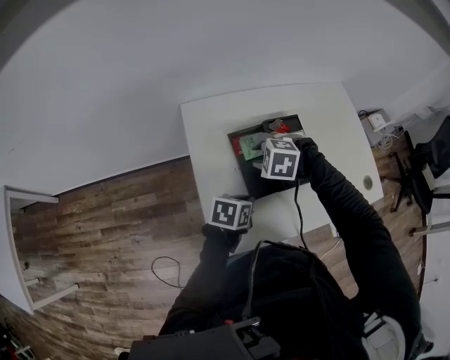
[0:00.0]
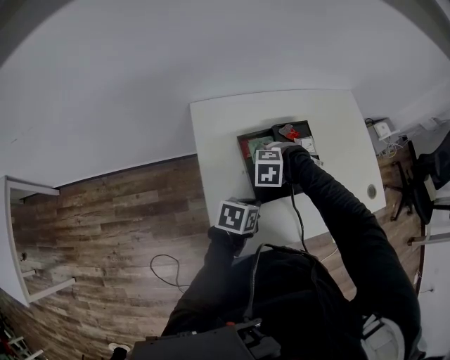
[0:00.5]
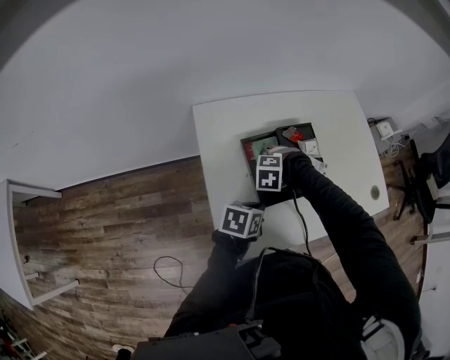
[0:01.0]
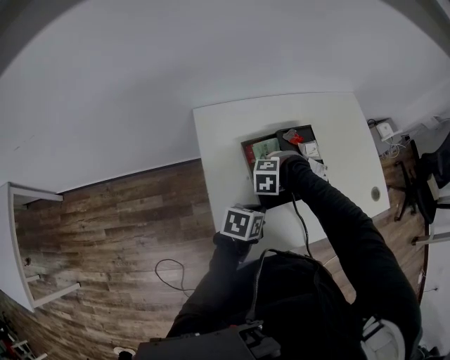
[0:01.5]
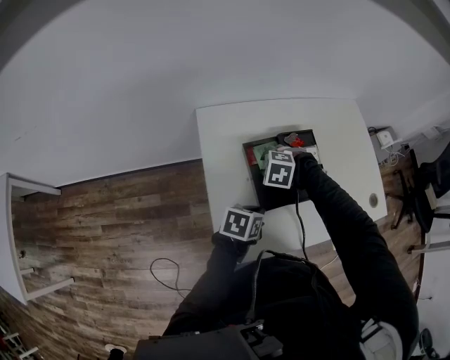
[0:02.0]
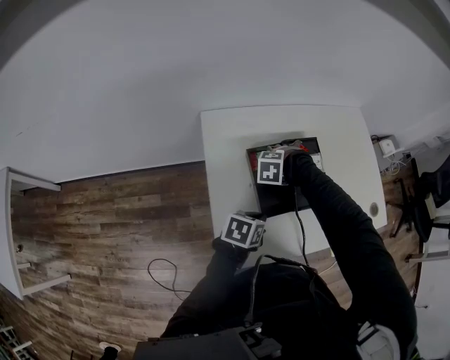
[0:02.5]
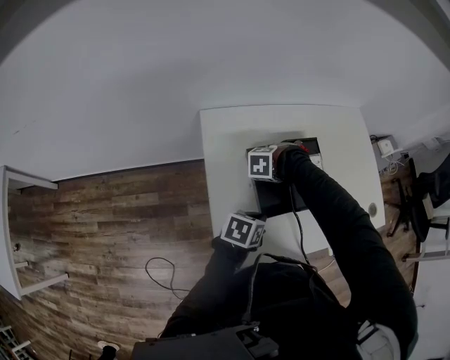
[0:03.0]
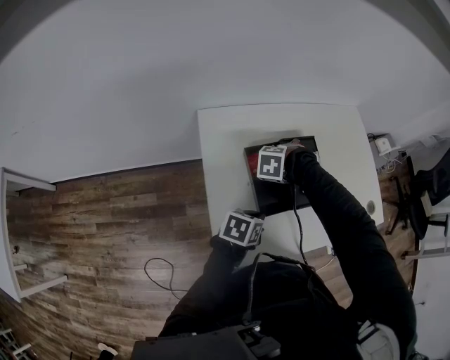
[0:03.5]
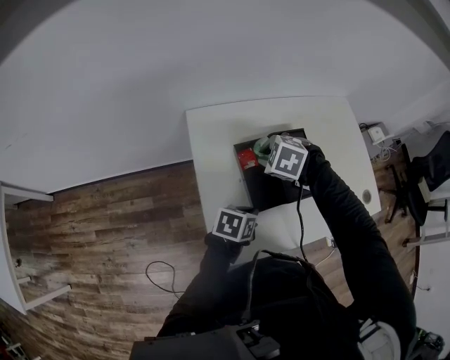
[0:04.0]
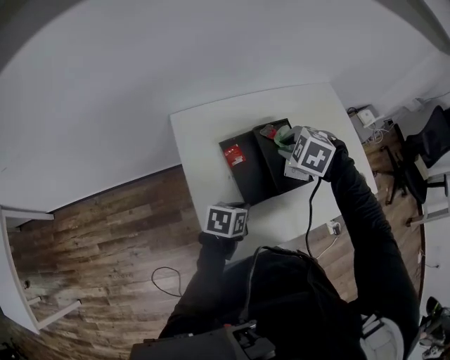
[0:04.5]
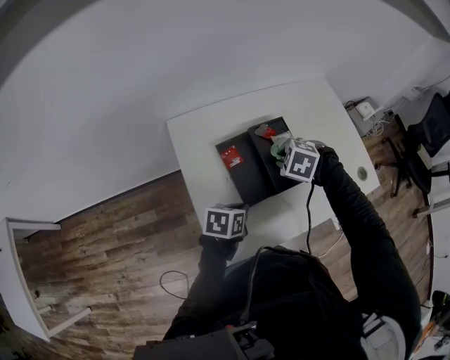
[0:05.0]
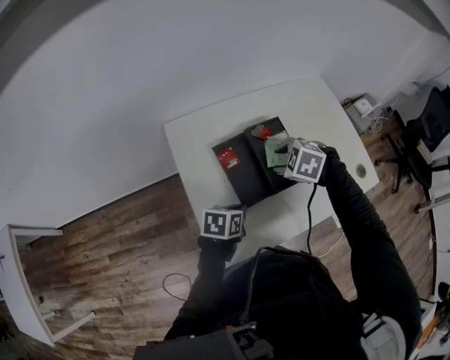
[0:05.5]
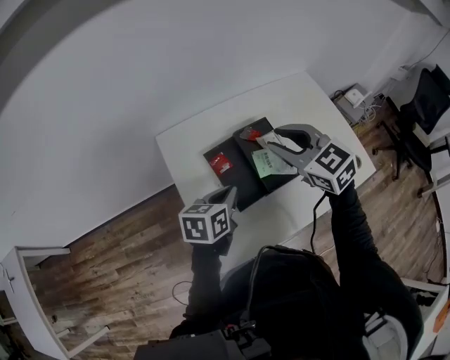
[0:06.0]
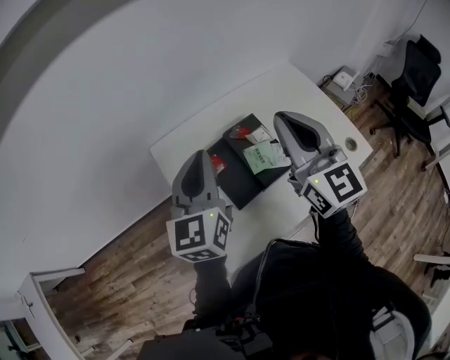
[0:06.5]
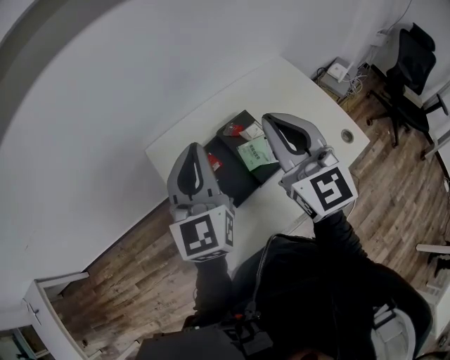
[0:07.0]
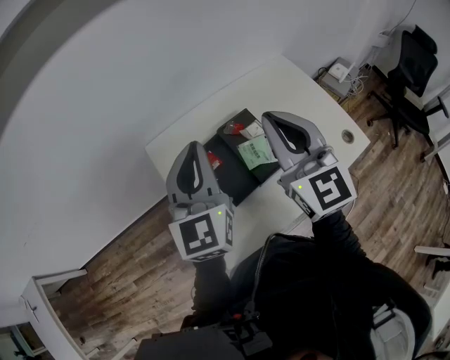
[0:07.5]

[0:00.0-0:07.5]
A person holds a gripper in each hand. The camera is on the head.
0:00.0 to 0:02.0: The right gripper shifts some 5 cm downward, and closes, then opens again.
0:02.0 to 0:04.0: The right gripper goes about 5 cm upward, and opens and closes again.
0:04.0 to 0:05.5: The right gripper shifts by some 10 cm, and opens up.
0:05.5 to 0:07.5: Both grippers travel together upward, roughly 30 cm. The right gripper angles its fingers upward, by some 70 degrees, and closes its fingers. Meanwhile the left gripper tilts its fingers some 50 degrees upward.

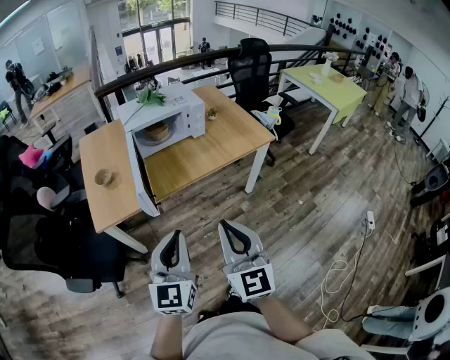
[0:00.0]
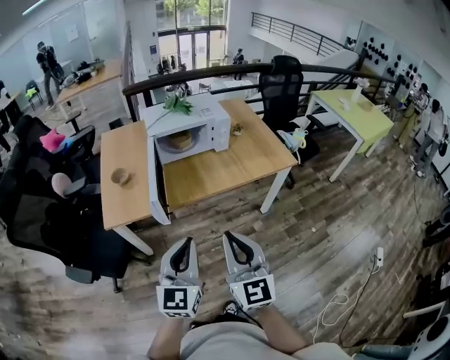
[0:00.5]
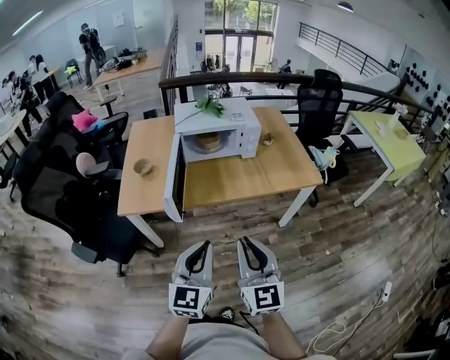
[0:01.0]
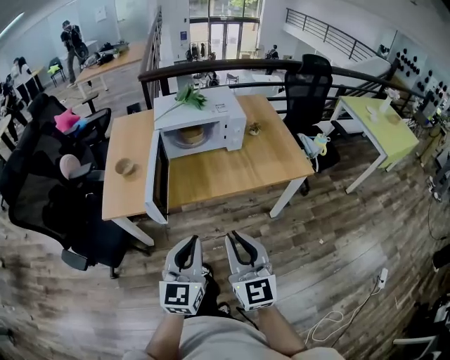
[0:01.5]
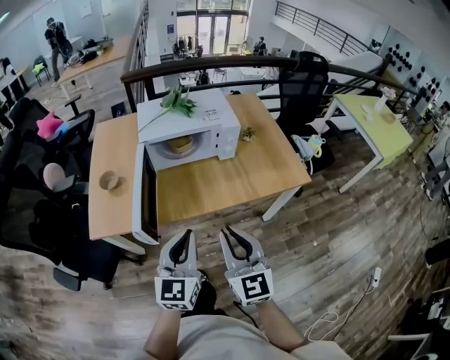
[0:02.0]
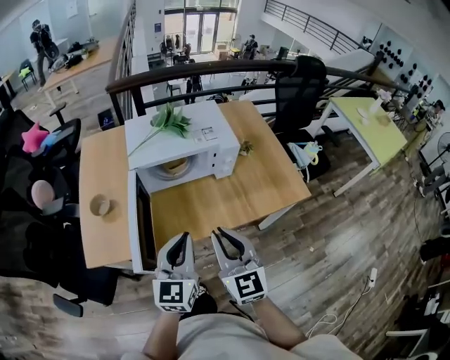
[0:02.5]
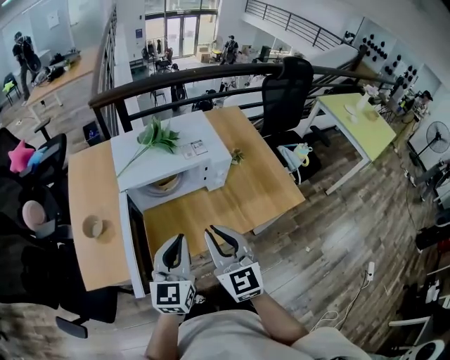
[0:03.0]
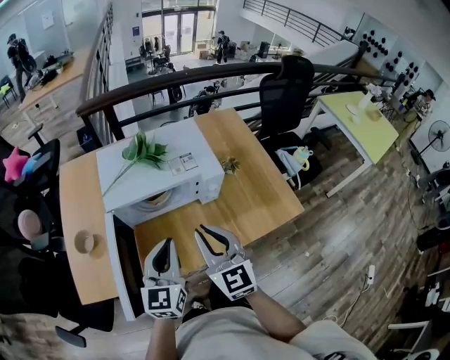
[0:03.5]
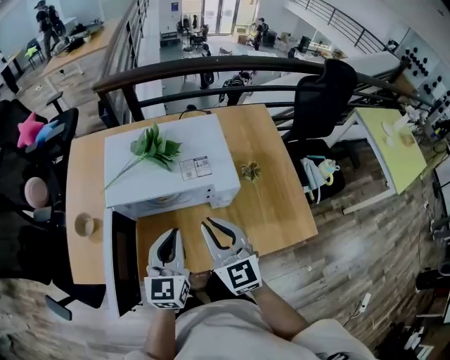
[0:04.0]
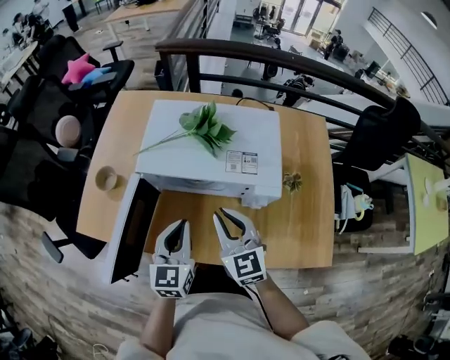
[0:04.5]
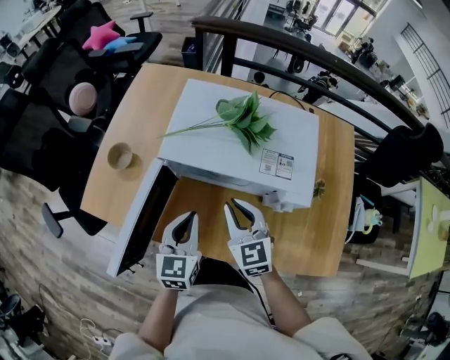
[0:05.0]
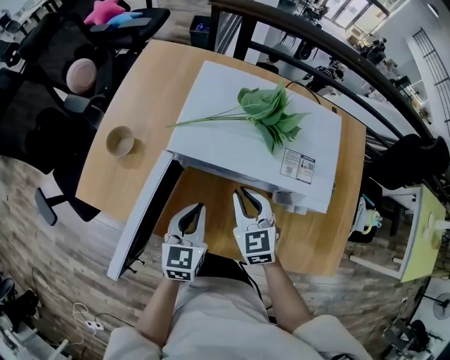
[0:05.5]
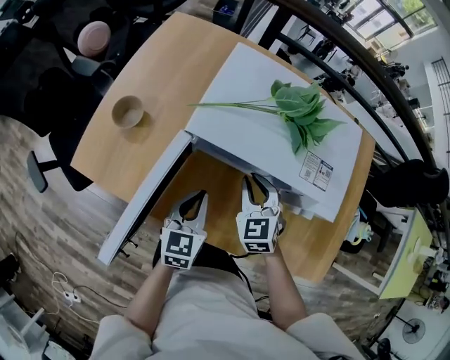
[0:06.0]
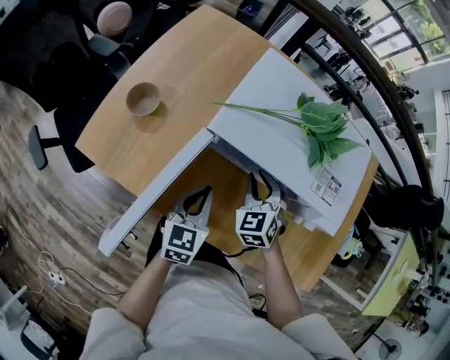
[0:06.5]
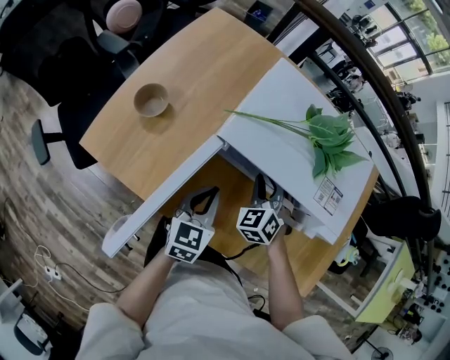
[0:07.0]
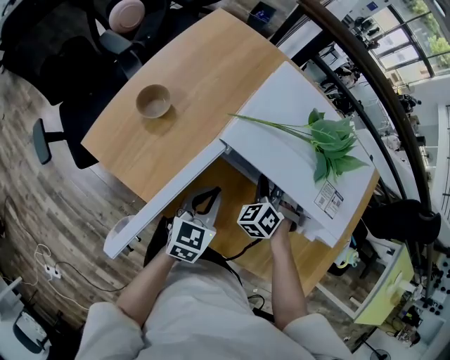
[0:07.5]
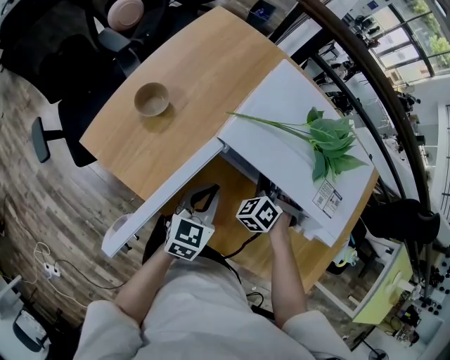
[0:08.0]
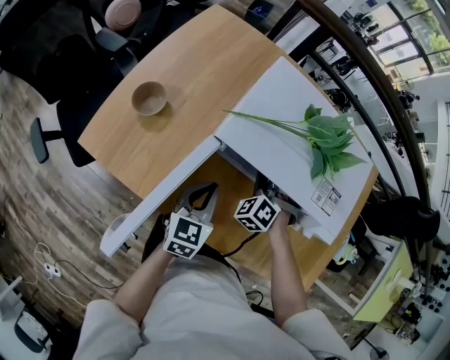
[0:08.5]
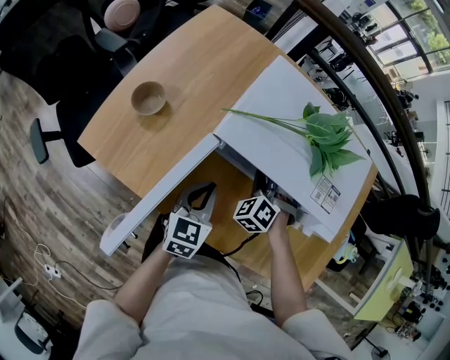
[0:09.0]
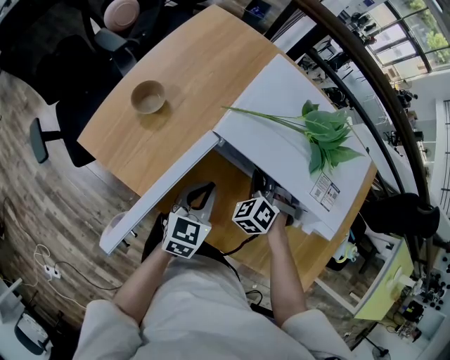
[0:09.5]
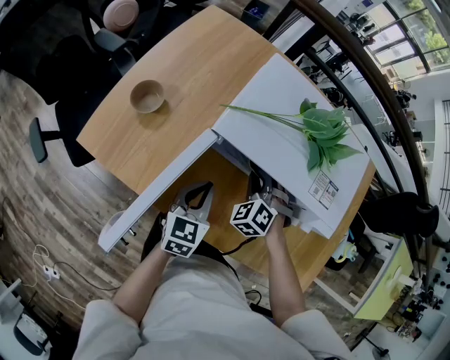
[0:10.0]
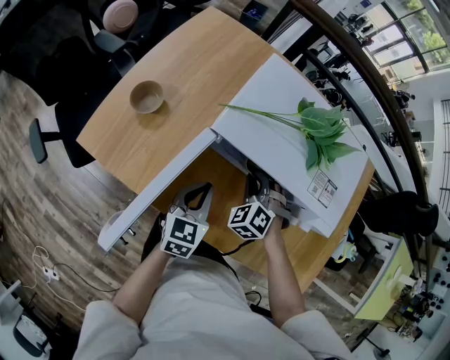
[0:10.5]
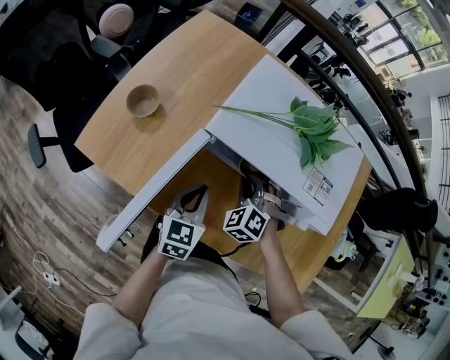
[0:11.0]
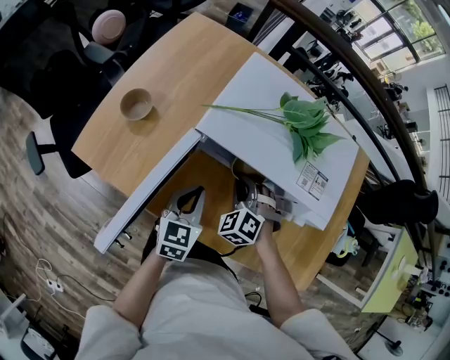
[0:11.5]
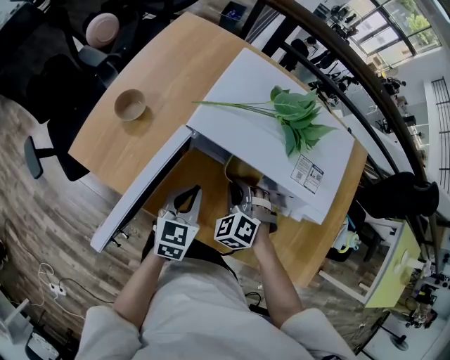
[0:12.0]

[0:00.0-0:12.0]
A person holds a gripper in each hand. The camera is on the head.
0:00.0 to 0:02.0: The grippers both shift forward by about 20 cm.
0:02.0 to 0:04.0: The two grippers go about 35 cm forward.
0:04.0 to 0:06.0: The right gripper travels downward, forward and to the left by some 25 cm, and rotates about 30 degrees, while the left gripper shifts about 20 cm downward and to the left, and turns by approximately 30 degrees.
0:06.0 to 0:08.0: The right gripper shifts approximately 10 cm downward and forward, and swivels about 40 degrees.
0:08.0 to 0:10.0: There are only small adjustments of the grippers.
0:10.0 to 0:12.0: The right gripper shifts approximately 5 cm backward.

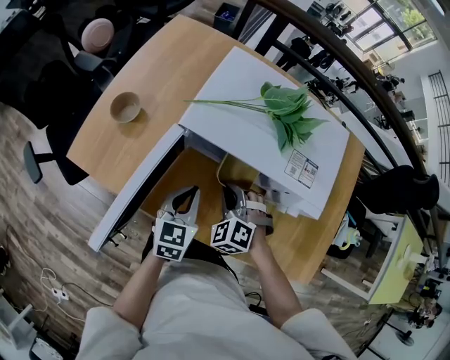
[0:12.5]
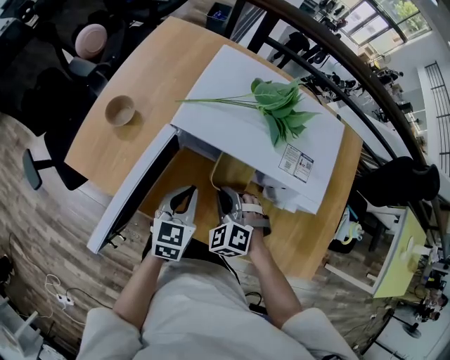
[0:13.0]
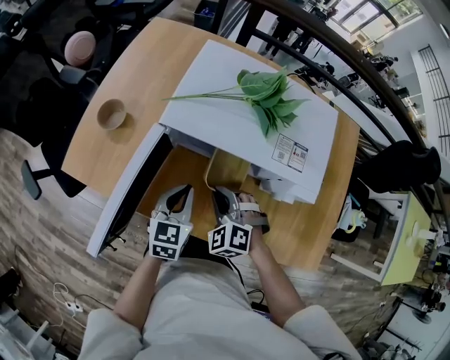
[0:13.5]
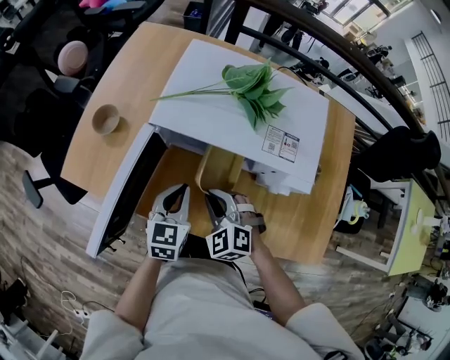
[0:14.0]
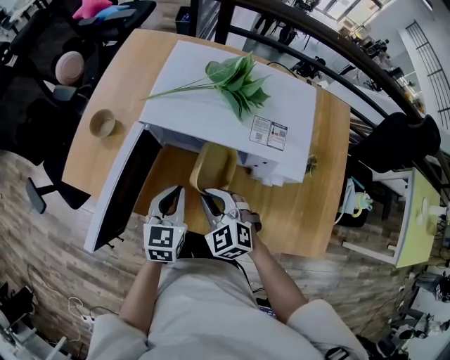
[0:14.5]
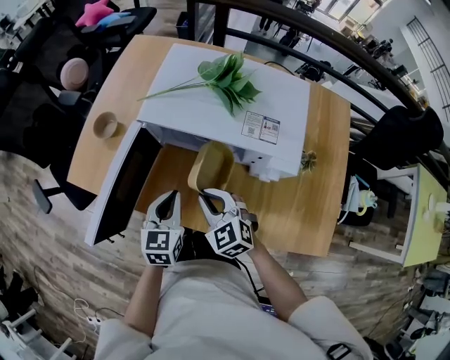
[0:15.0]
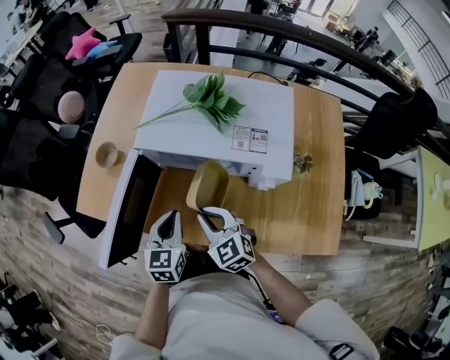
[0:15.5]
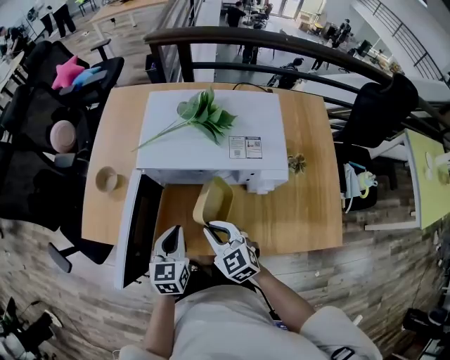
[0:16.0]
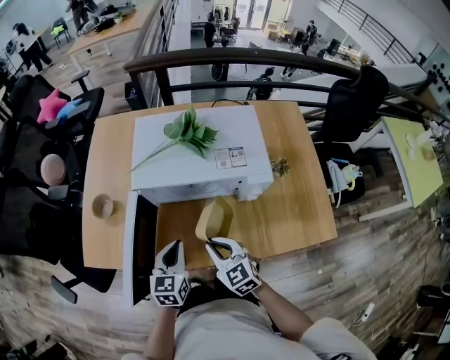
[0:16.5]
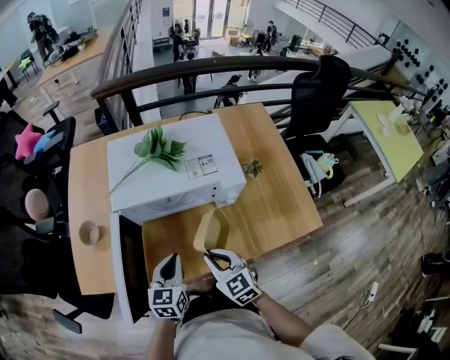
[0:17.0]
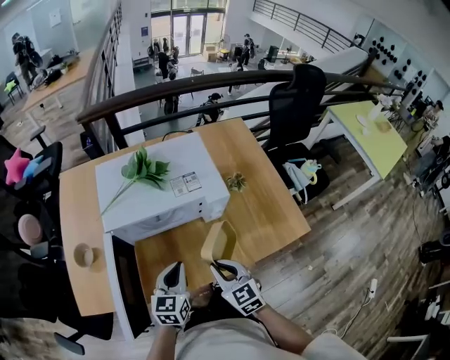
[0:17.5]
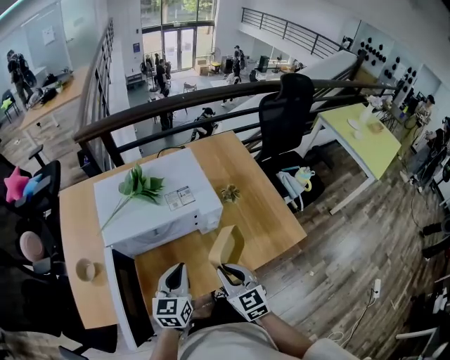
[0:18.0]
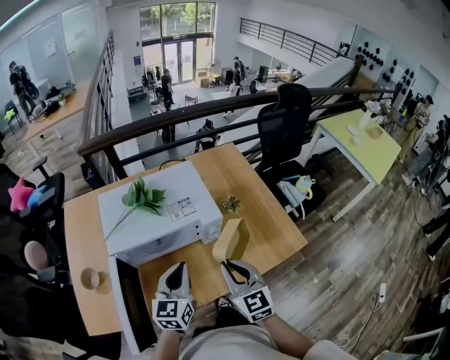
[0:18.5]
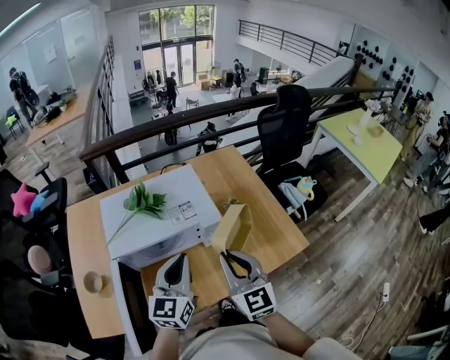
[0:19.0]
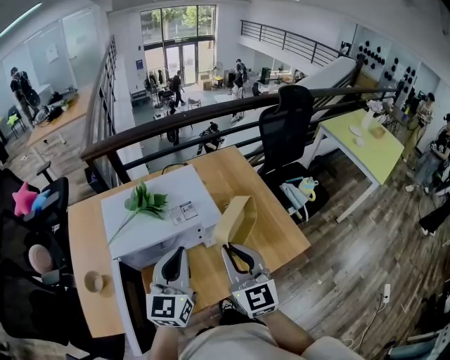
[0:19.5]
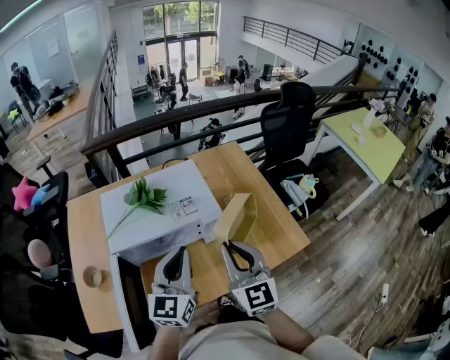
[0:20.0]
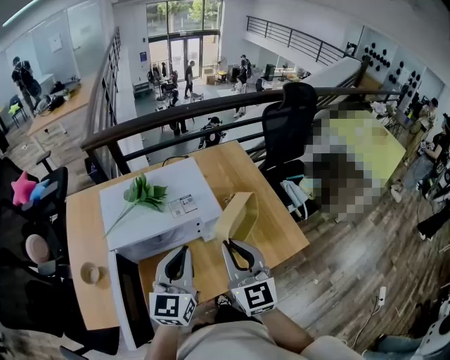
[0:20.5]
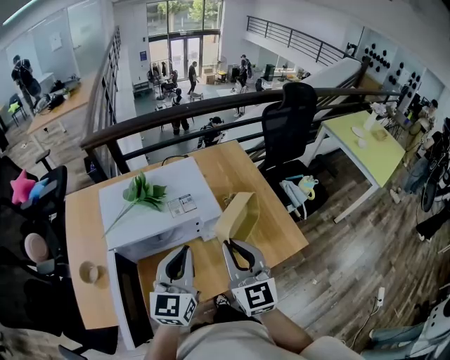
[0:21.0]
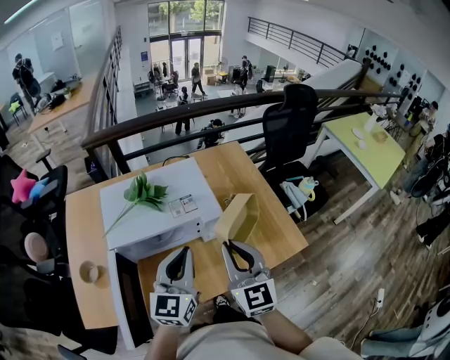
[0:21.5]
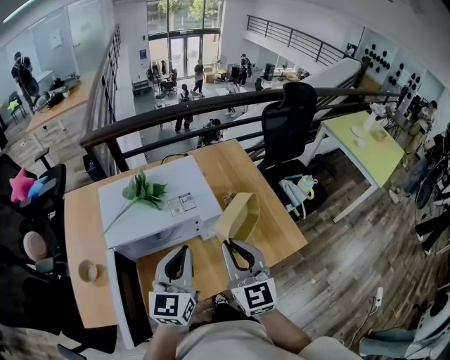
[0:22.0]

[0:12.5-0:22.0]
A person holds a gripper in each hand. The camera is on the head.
0:12.5 to 0:14.5: The right gripper moves backward, approximately 5 cm, and changes its angle by some 30 degrees.
0:14.5 to 0:16.5: The right gripper changes place by some 5 cm, and turns by roughly 30 degrees, while the left gripper moves approximately 5 cm.
0:16.5 to 0:18.0: The grippers both shift to the right and upward by some 15 cm. The right gripper swivels some 30 degrees. Meanwhile the left gripper changes its angle by some 20 degrees.
0:18.0 to 0:20.0: Both grippers move upward, some 15 cm. The right gripper rotates some 20 degrees.
0:20.0 to 0:22.0: Both grippers stay put.
